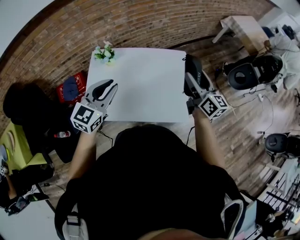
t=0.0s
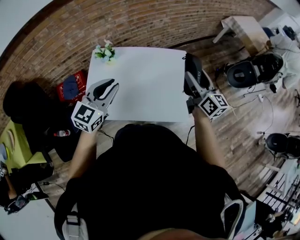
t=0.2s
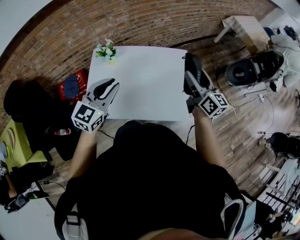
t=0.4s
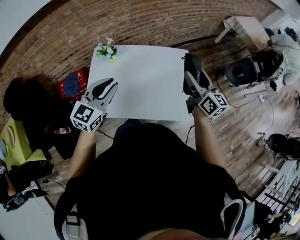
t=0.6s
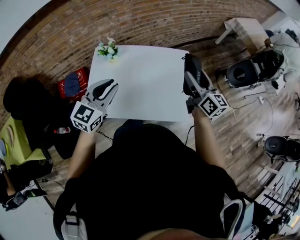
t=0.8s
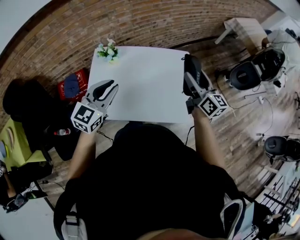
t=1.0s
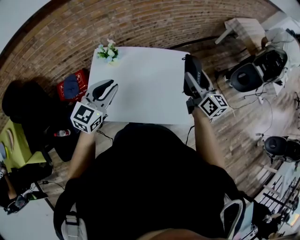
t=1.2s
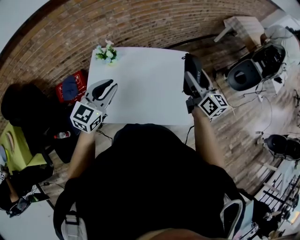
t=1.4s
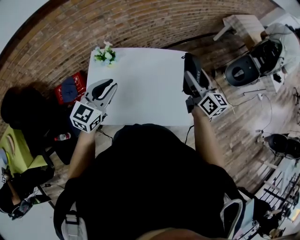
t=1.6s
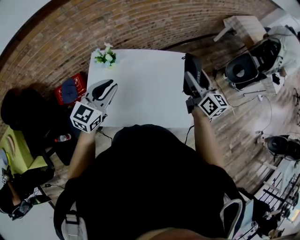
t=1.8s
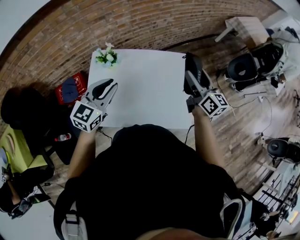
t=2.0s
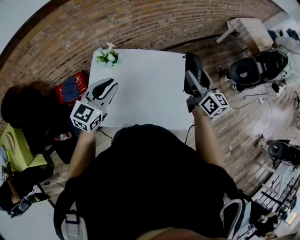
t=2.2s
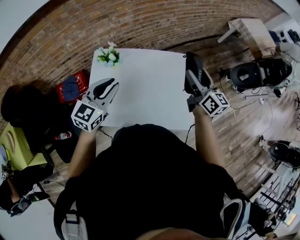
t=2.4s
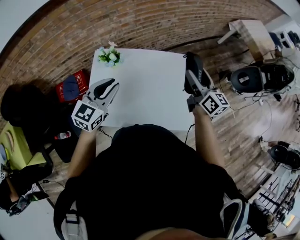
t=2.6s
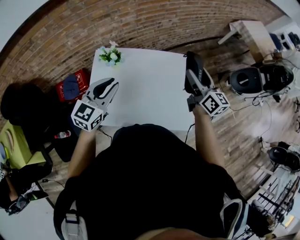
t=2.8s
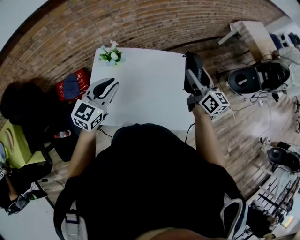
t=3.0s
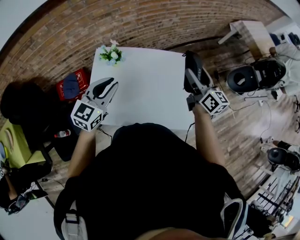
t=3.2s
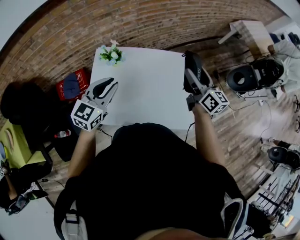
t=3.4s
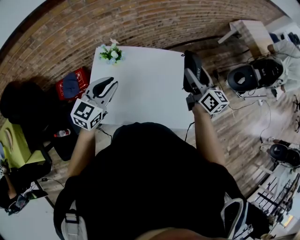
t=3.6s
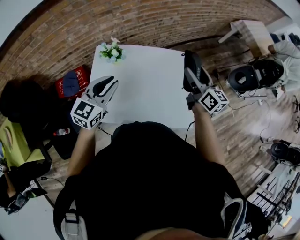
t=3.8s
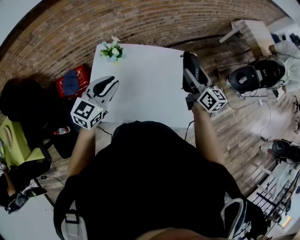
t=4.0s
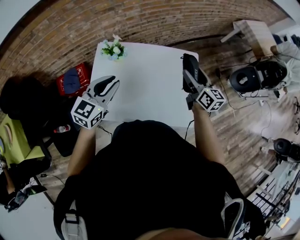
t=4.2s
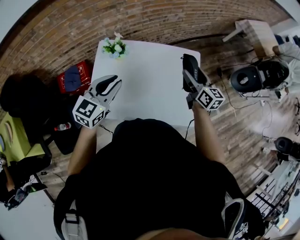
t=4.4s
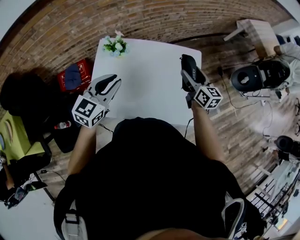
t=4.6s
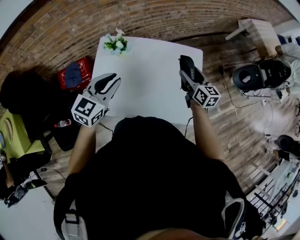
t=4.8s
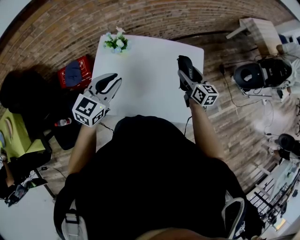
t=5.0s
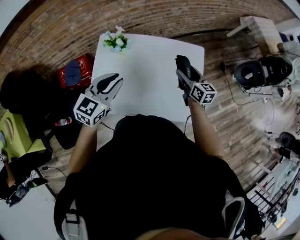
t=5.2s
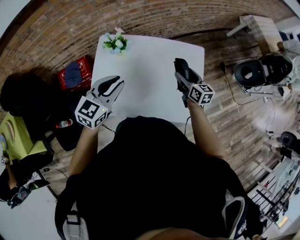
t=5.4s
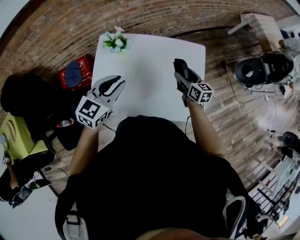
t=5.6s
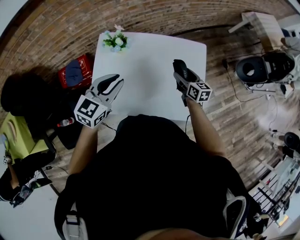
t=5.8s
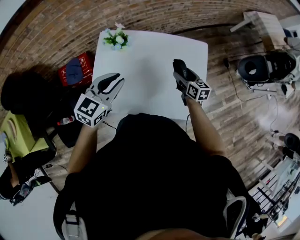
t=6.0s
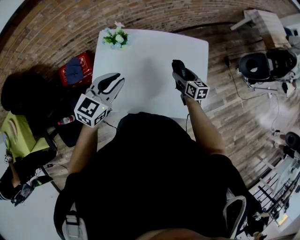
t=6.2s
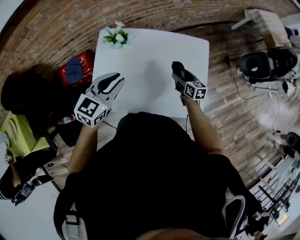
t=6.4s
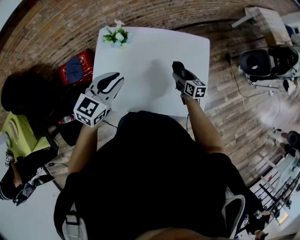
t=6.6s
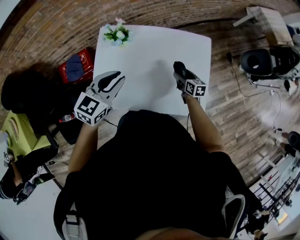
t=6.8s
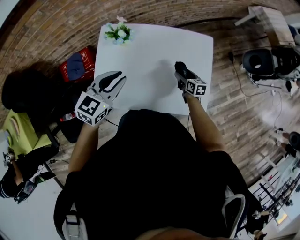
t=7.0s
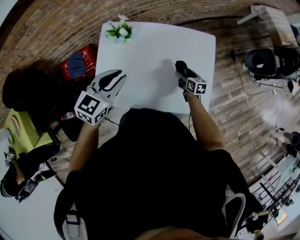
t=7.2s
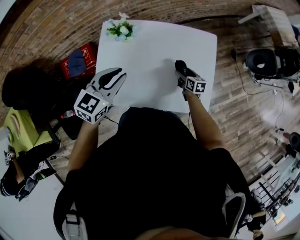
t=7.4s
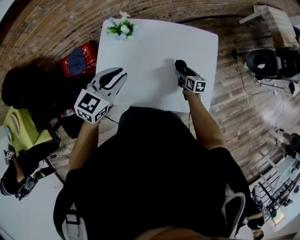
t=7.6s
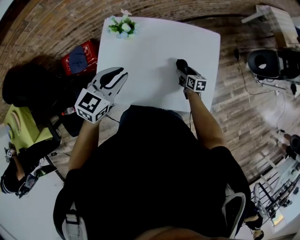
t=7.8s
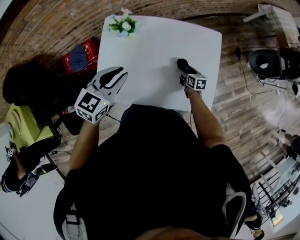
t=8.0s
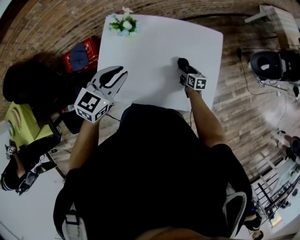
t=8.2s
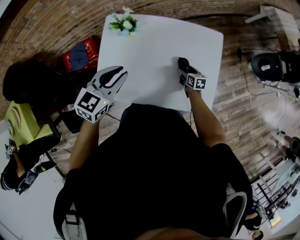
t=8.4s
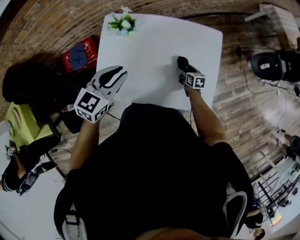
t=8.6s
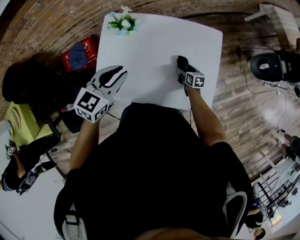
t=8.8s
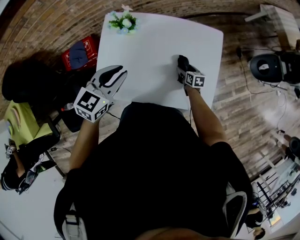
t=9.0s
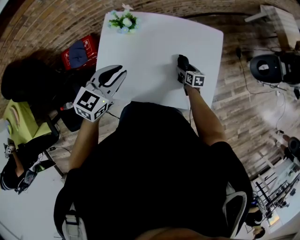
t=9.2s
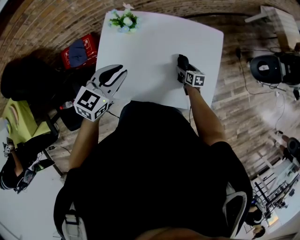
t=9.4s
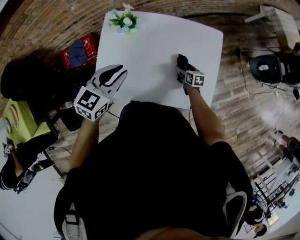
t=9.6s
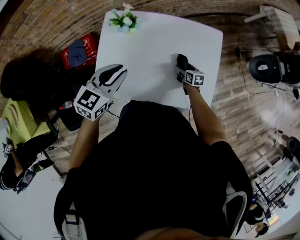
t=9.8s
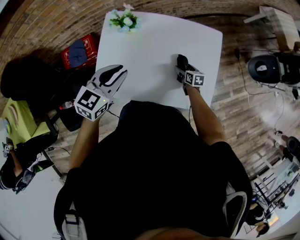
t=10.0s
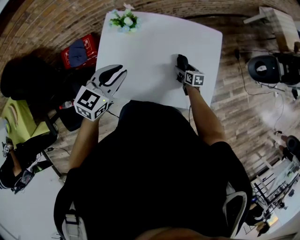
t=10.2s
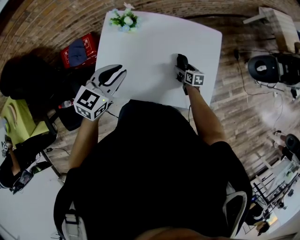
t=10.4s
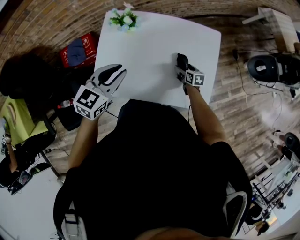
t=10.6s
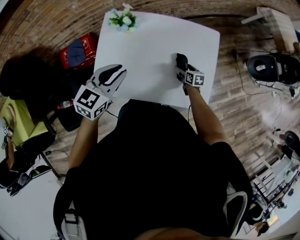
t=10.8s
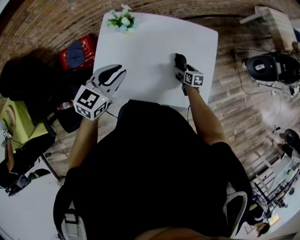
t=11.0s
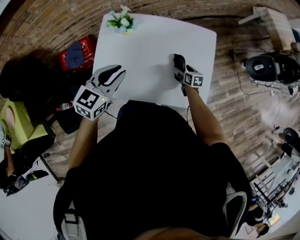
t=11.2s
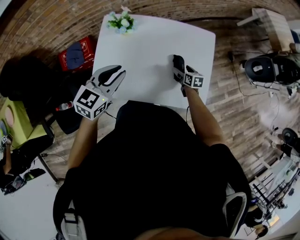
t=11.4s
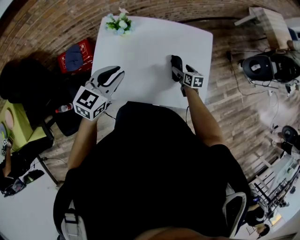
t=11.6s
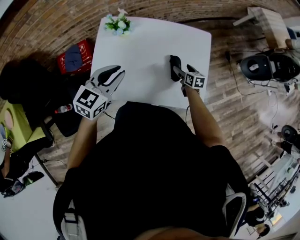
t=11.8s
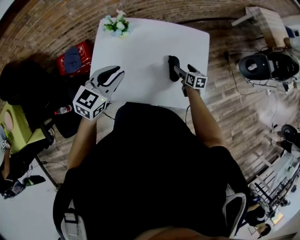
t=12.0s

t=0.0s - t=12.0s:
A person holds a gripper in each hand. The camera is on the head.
t=0.0s - t=1.6s: The left gripper changes place by some 5 cm; the right gripper travels forward by some 5 cm.
t=1.6s - t=3.0s: The right gripper shifts by about 5 cm.
t=3.0s - t=4.4s: The right gripper heads downward, covering approximately 10 cm.
t=4.4s - t=6.0s: The right gripper heads downward, covering about 15 cm.
t=6.0s - t=7.6s: The right gripper moves downward, about 15 cm.
t=7.6s - t=10.4s: The grippers move only a little.
t=10.4s - t=12.0s: The right gripper travels upward by approximately 10 cm.

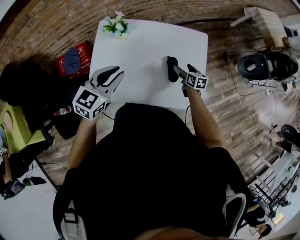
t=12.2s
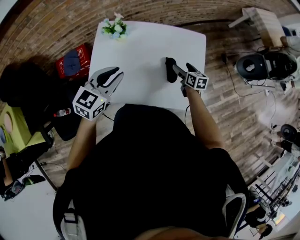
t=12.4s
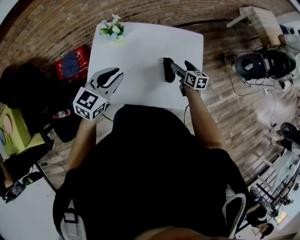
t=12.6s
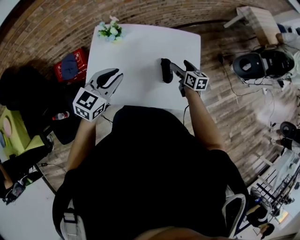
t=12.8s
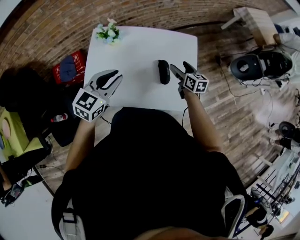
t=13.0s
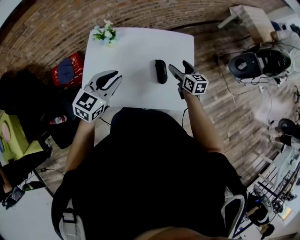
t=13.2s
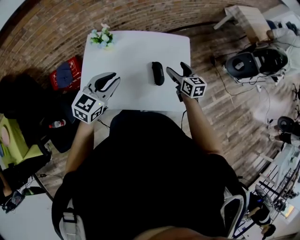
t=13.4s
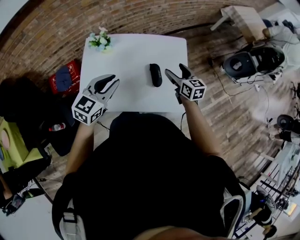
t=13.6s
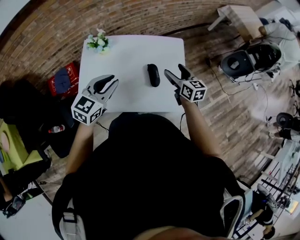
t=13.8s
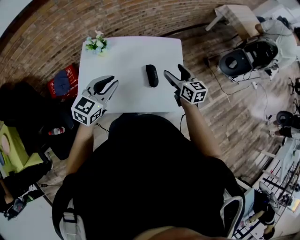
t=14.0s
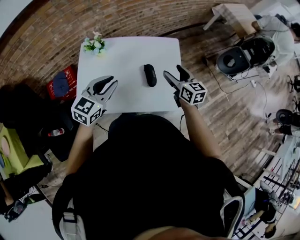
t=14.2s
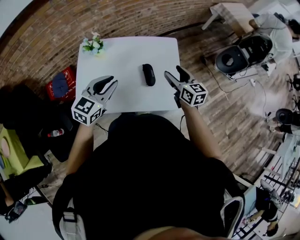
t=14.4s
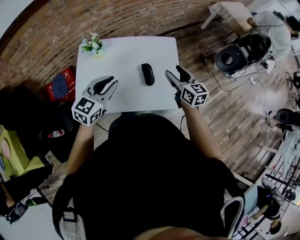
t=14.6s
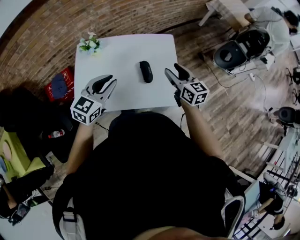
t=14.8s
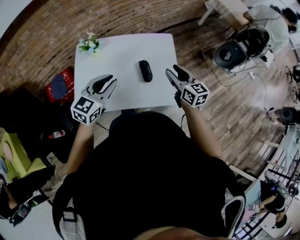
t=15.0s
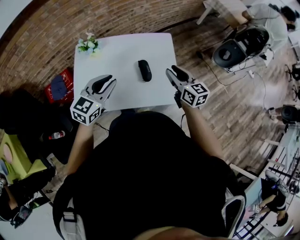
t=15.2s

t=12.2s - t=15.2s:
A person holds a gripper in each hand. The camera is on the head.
t=12.2s - t=13.8s: The right gripper moves upward, approximately 20 cm. The left gripper travels to the right by some 5 cm.
t=13.8s - t=15.2s: The right gripper shifts some 10 cm backward and upward, and closes its fingers.

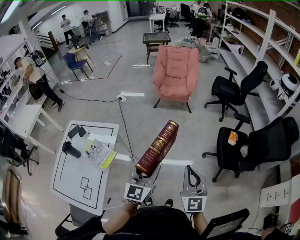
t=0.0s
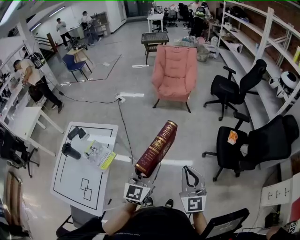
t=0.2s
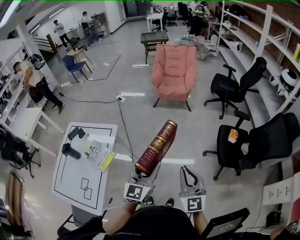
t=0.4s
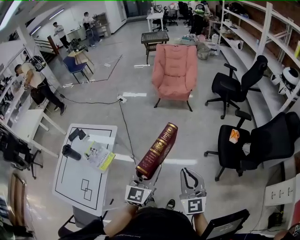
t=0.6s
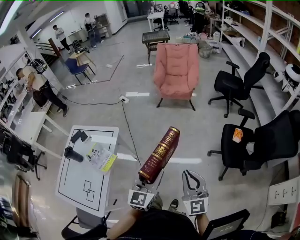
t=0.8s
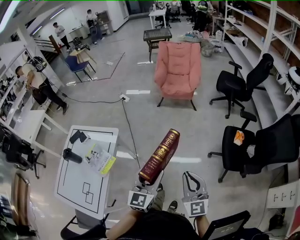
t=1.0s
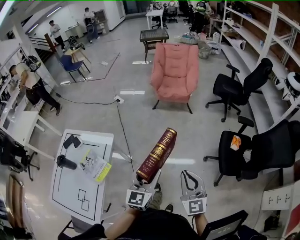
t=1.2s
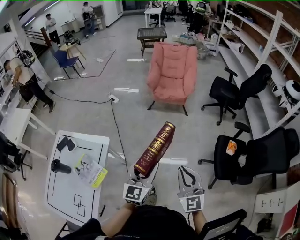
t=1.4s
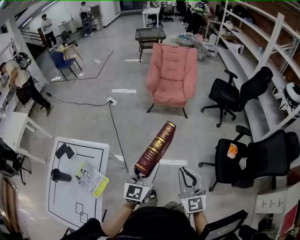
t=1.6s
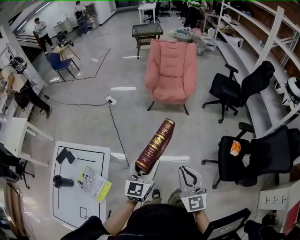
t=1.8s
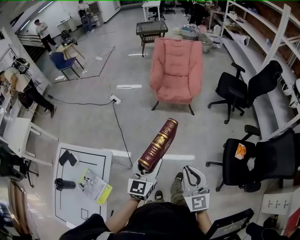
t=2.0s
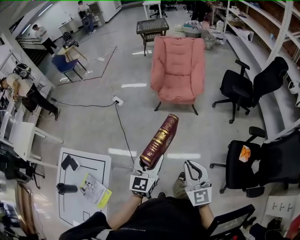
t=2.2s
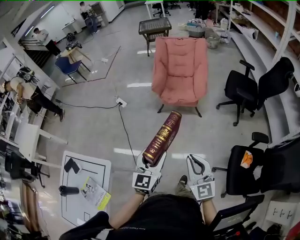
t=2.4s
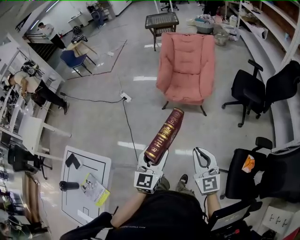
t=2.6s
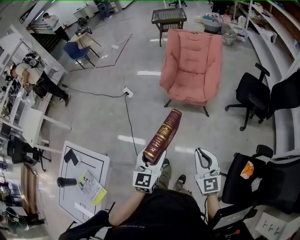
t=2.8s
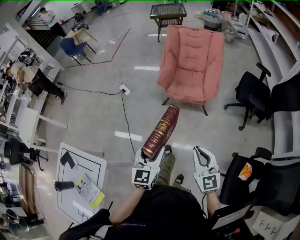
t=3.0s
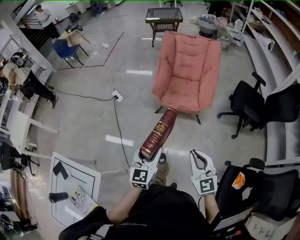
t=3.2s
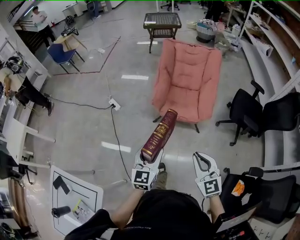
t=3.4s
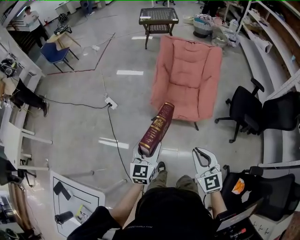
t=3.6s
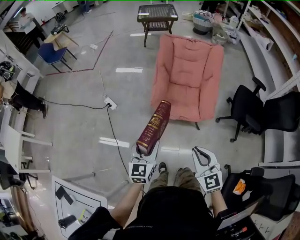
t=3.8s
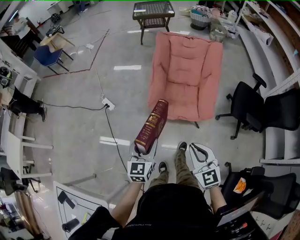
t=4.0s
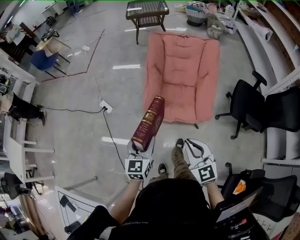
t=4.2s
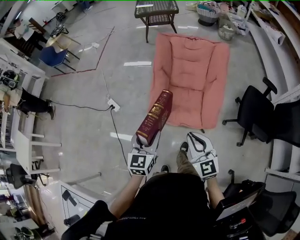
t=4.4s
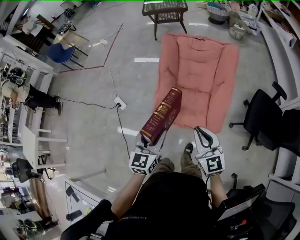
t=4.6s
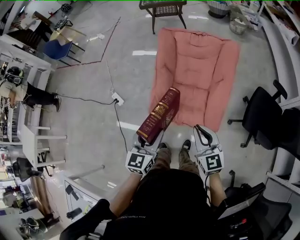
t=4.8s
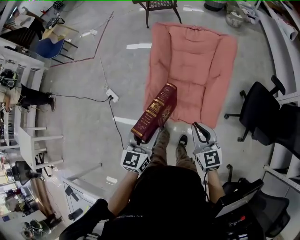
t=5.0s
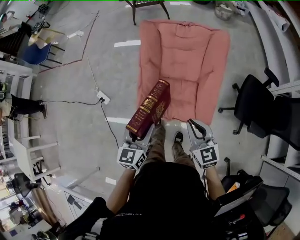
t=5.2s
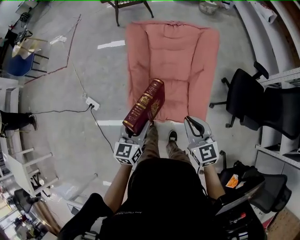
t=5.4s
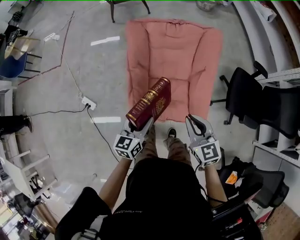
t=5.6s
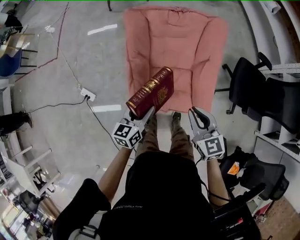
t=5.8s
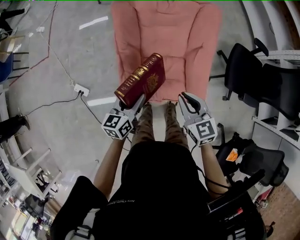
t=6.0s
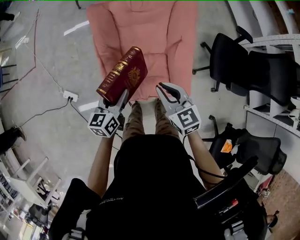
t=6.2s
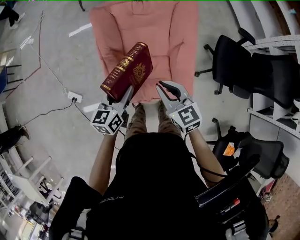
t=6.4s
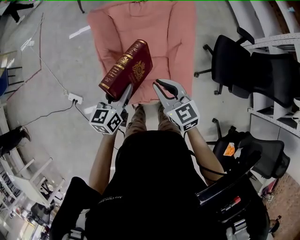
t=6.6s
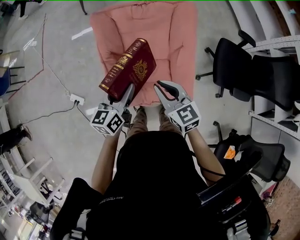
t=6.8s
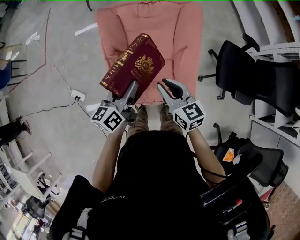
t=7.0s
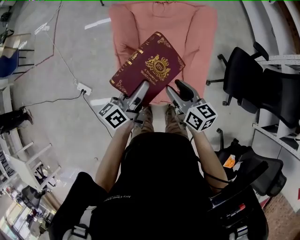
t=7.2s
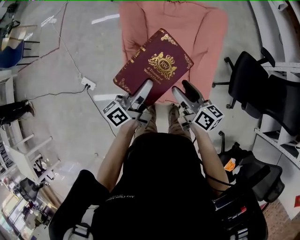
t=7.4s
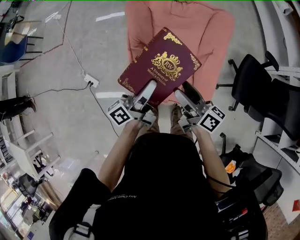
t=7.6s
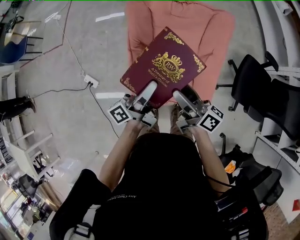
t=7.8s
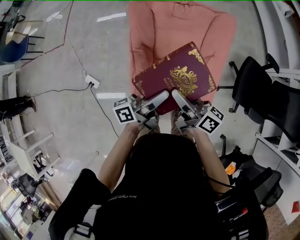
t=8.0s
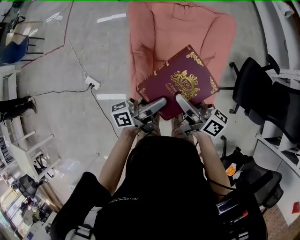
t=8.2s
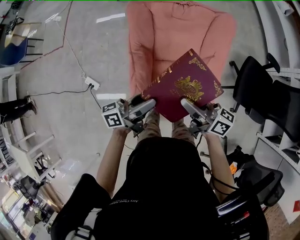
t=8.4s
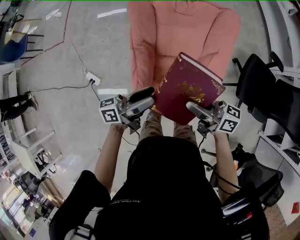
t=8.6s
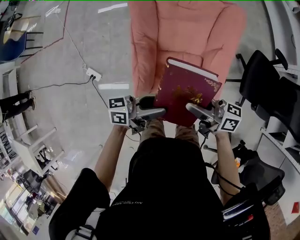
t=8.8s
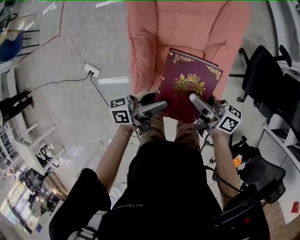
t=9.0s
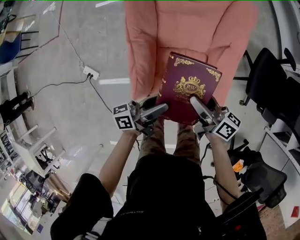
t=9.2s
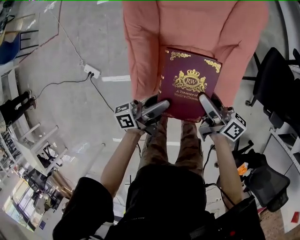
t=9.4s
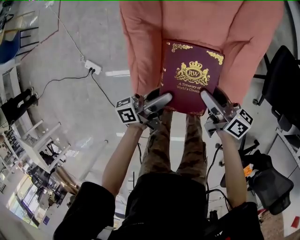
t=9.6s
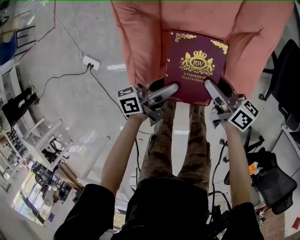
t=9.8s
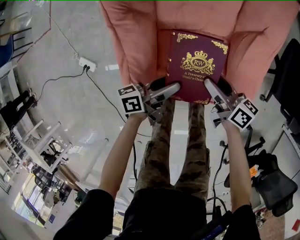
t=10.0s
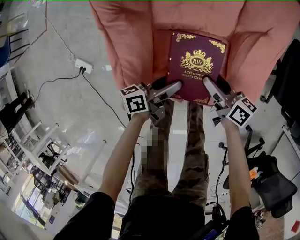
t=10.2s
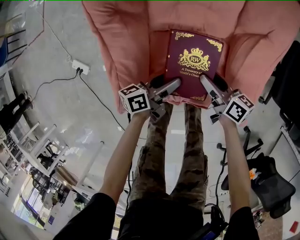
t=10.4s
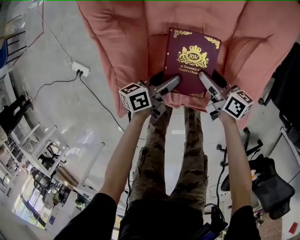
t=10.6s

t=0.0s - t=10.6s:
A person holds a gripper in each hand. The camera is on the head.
t=0.0s - t=1.6s: The grippers both shift forward by approximately 20 cm.
t=1.6s - t=3.0s: Both grippers move forward, some 35 cm.
t=3.0s - t=4.6s: Both grippers are carried forward, about 50 cm.
t=4.6s - t=6.0s: Both grippers move forward and downward, approximately 25 cm. The right gripper swivels about 20 degrees. The left gripper rotates about 30 degrees.
t=6.0s - t=7.6s: The right gripper ends up roughly 5 cm from where it was, rotates around the line of its fingers by some 50 degrees, clockwise from behind, and opens up; the left gripper is displaced upward and to the right by roughly 10 cm, and changes its angle by roughly 50 degrees.
t=7.6s - t=9.0s: The right gripper goes about 5 cm downward, while the left gripper goes roughly 10 cm downward, and rotates approximately 30 degrees.
t=9.0s - t=10.6s: Both grippers travel together downward, about 40 cm. The left gripper swivels about 30 degrees, while the right gripper changes its angle by about 20 degrees.
